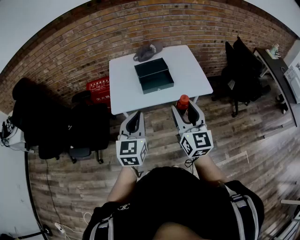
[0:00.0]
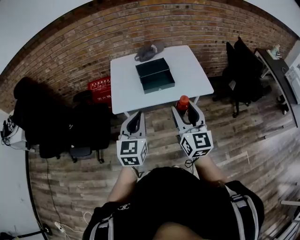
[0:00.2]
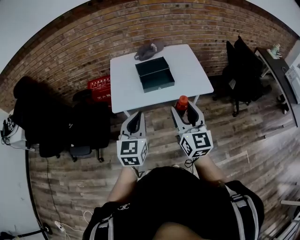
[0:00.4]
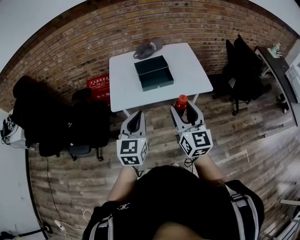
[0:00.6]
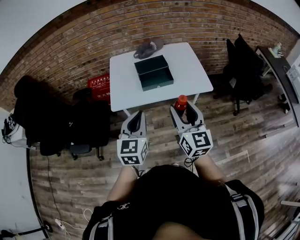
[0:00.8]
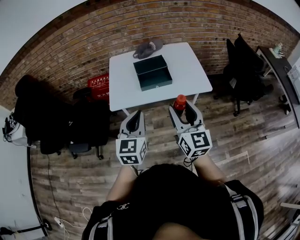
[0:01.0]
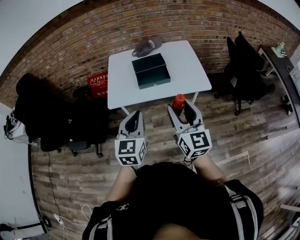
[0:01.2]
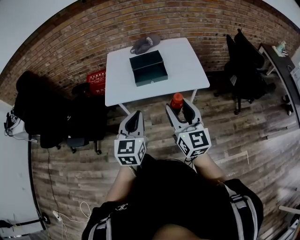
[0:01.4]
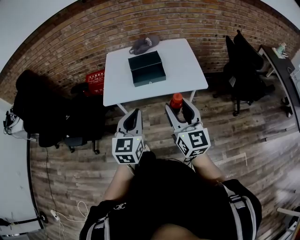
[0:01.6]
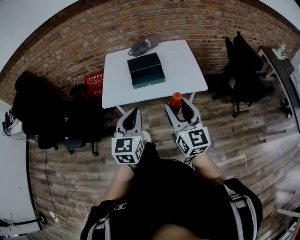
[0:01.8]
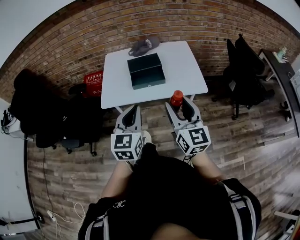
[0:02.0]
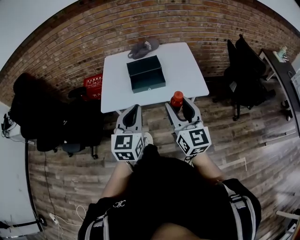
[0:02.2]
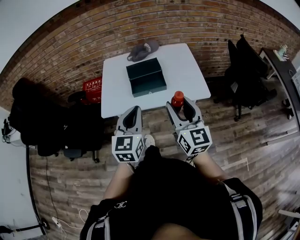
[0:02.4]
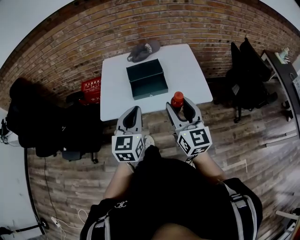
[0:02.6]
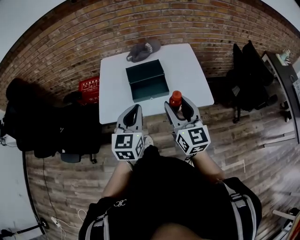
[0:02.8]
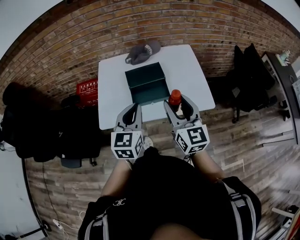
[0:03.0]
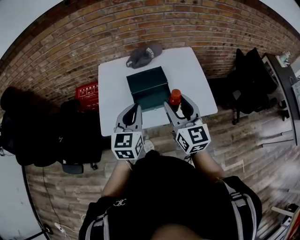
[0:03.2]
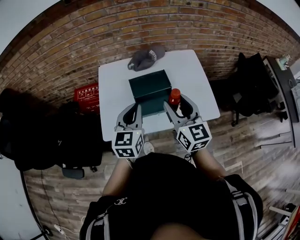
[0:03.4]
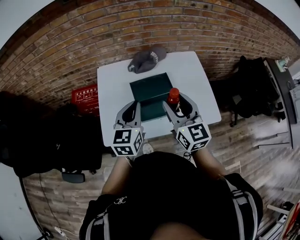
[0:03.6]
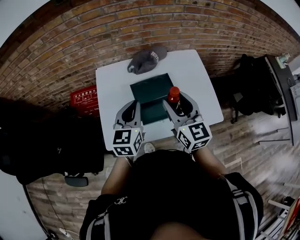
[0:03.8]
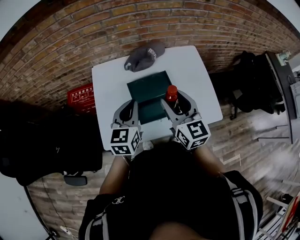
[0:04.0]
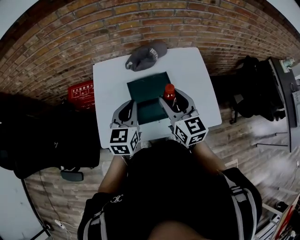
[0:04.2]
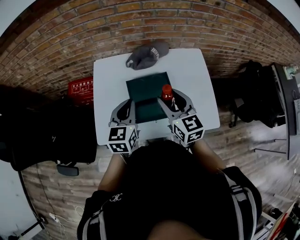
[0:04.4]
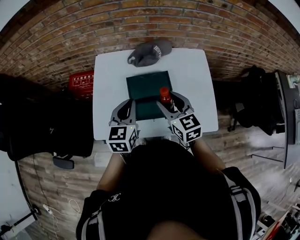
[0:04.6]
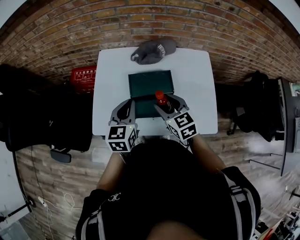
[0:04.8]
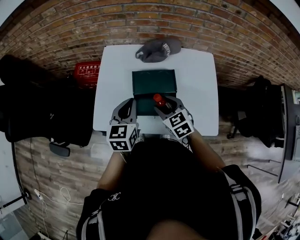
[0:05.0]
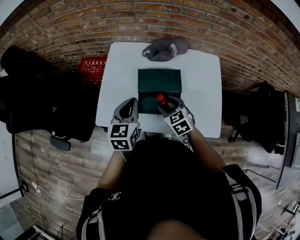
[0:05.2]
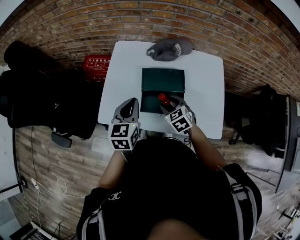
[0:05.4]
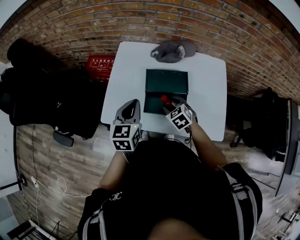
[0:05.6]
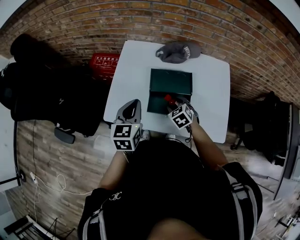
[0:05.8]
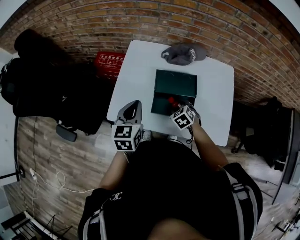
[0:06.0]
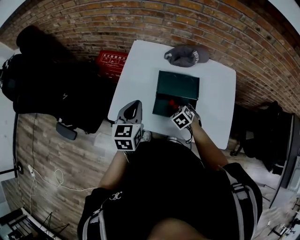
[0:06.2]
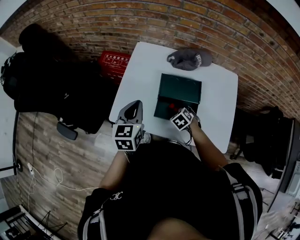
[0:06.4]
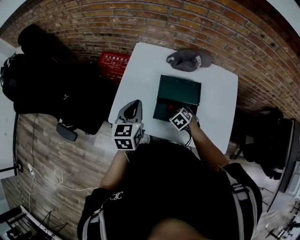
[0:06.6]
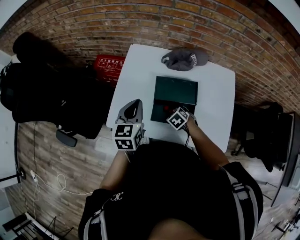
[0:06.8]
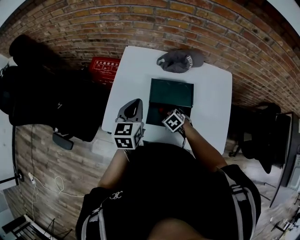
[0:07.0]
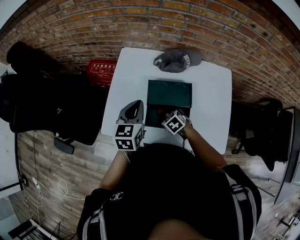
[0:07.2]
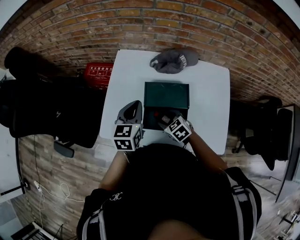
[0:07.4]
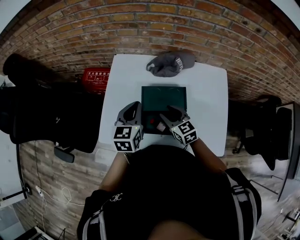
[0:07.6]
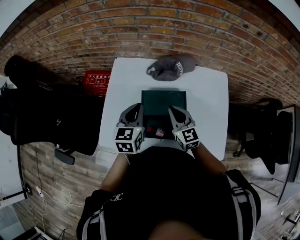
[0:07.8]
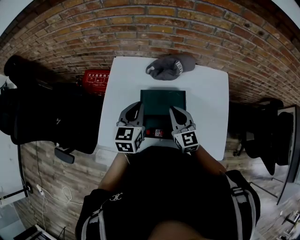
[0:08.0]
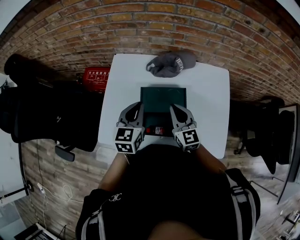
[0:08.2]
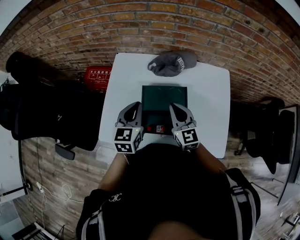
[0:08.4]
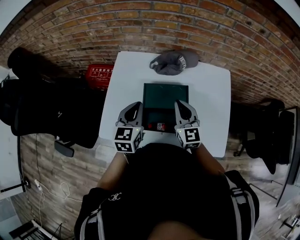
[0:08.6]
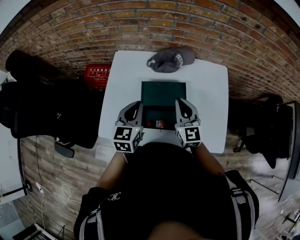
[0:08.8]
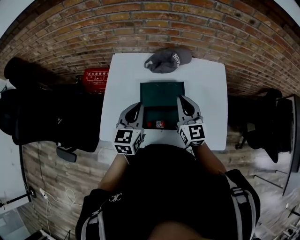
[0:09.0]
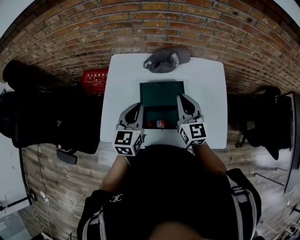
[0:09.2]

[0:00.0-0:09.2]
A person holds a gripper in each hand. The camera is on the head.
0.0 to 1.6 s: Both grippers travel together to the right, roughly 10 cm.
1.6 to 3.0 s: Both grippers travel together forward, roughly 20 cm.
3.0 to 4.6 s: The left gripper moves forward, roughly 20 cm, while the right gripper shifts some 20 cm forward and downward, and changes its angle by approximately 30 degrees.
4.6 to 6.2 s: The left gripper moves to the left, some 10 cm, while the right gripper is displaced downward by about 25 cm, and tilts its fingers about 40 degrees downward.
6.2 to 7.6 s: The right gripper travels upward and forward by approximately 10 cm, and tips its fingers upward by approximately 40 degrees, while the left gripper goes about 15 cm to the right and forward.
7.6 to 9.2 s: The right gripper shifts roughly 15 cm upward and to the right, turns by roughly 30 degrees, and closes its fingers.

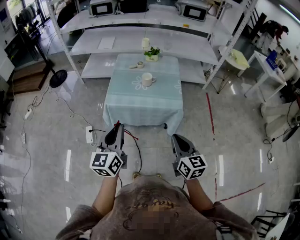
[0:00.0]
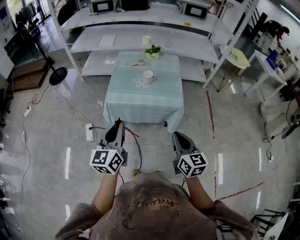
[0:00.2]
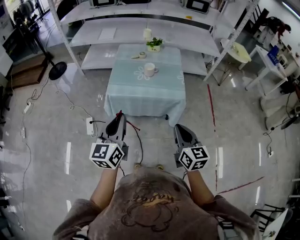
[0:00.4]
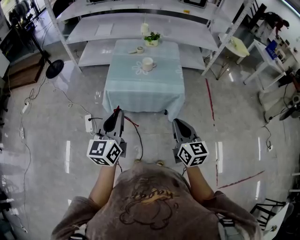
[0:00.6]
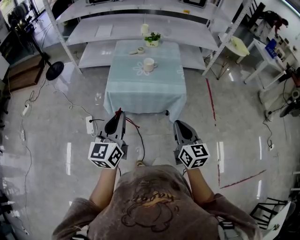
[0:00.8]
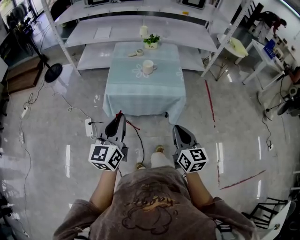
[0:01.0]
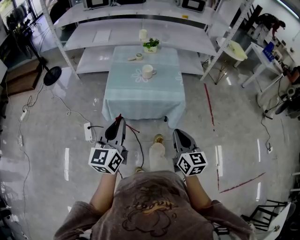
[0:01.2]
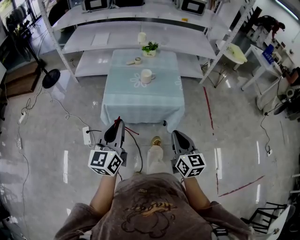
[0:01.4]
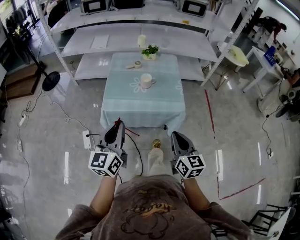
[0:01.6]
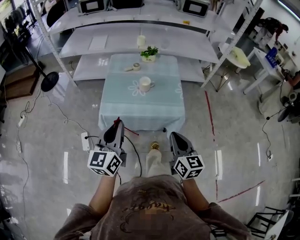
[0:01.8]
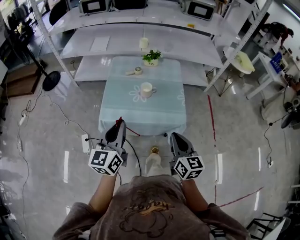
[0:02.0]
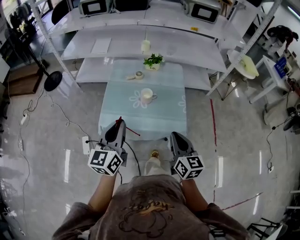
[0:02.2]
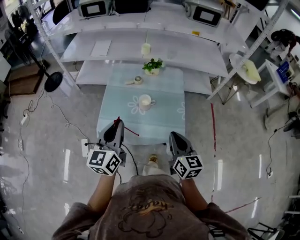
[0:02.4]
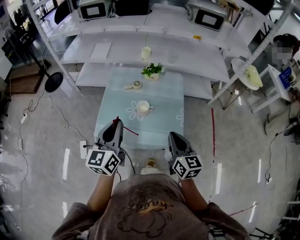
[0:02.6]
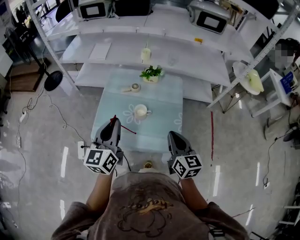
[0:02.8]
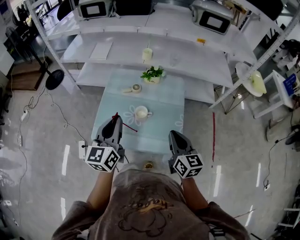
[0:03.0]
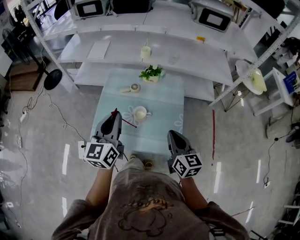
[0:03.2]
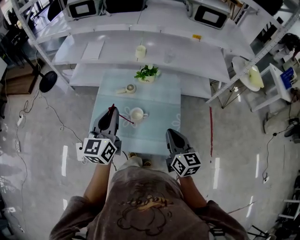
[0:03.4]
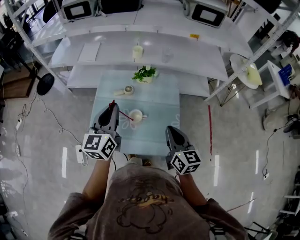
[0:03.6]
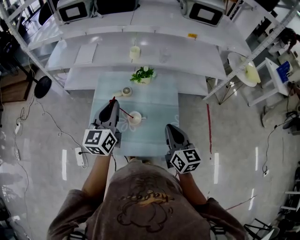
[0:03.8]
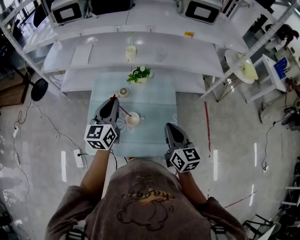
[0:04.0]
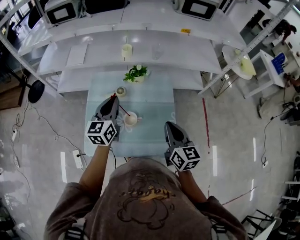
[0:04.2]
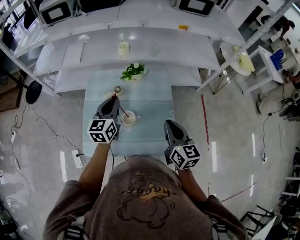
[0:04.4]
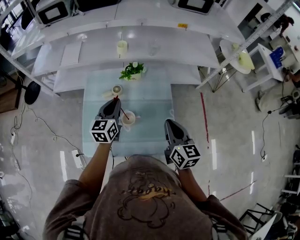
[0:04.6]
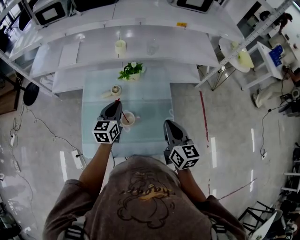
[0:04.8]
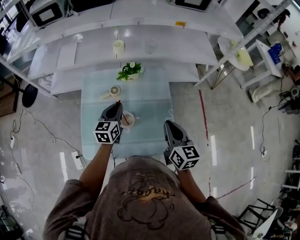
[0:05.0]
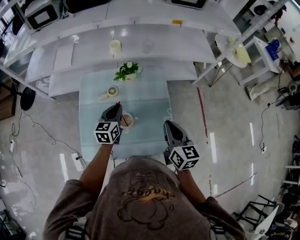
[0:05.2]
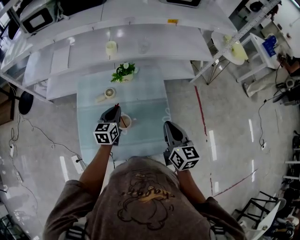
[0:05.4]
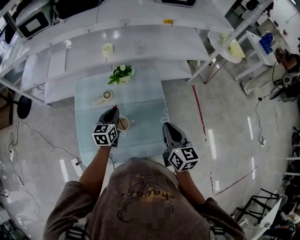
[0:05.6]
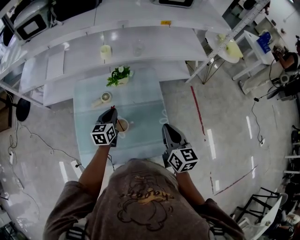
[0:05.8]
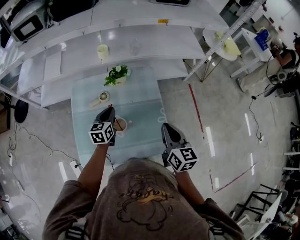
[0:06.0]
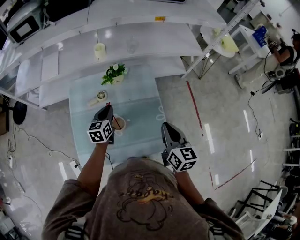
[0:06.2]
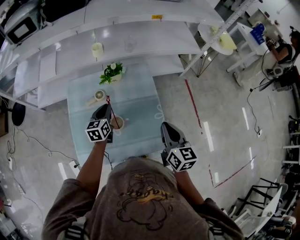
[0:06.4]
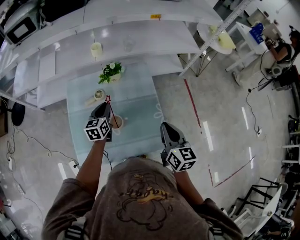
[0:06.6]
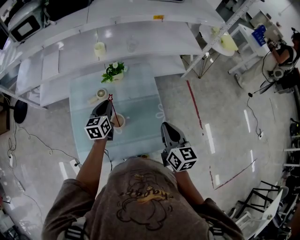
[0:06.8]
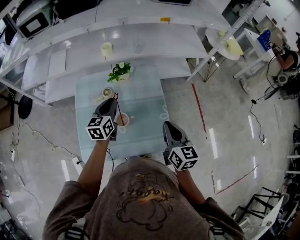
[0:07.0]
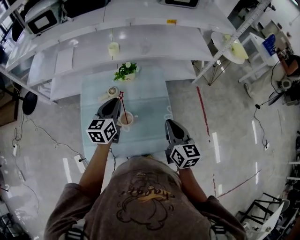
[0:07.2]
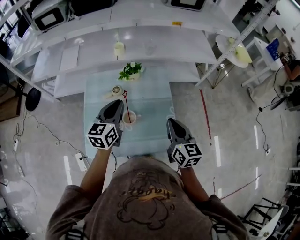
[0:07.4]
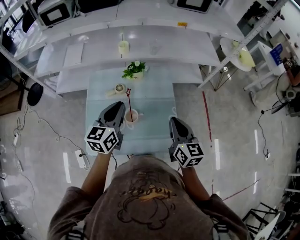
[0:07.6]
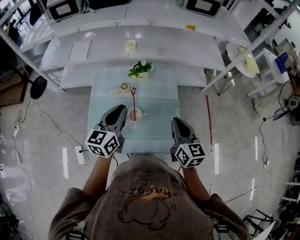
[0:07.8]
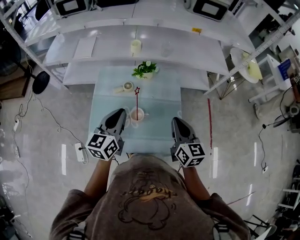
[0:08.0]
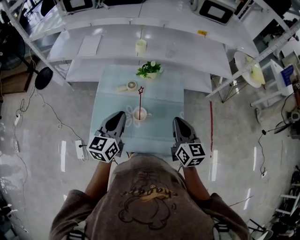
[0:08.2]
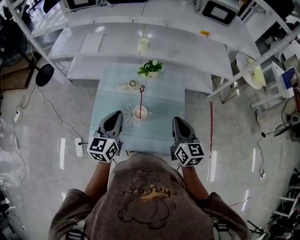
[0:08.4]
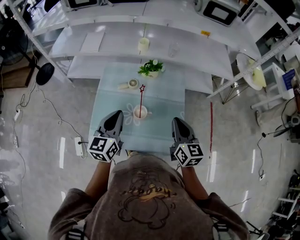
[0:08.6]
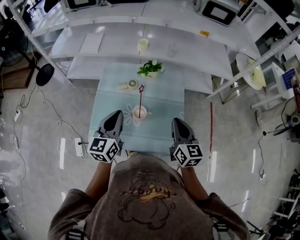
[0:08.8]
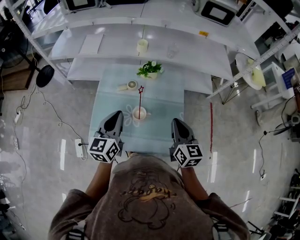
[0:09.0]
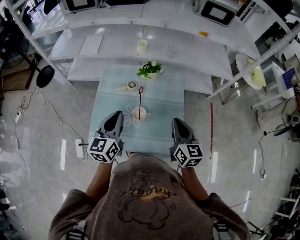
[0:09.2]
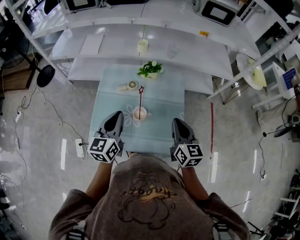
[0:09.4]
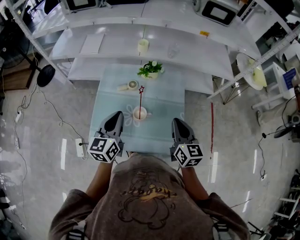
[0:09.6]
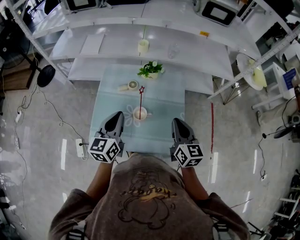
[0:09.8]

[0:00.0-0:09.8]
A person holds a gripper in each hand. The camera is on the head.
0.0 to 1.4 s: The right gripper moves some 5 cm. Meanwhile the left gripper ends up approximately 5 cm from where it was.
1.4 to 2.8 s: Both grippers travel together forward, roughly 35 cm.
2.8 to 4.2 s: The right gripper goes approximately 10 cm forward, while the left gripper moves forward, some 20 cm.
4.2 to 5.6 s: The left gripper shifts about 15 cm downward, and turns by some 20 degrees.
5.6 to 7.0 s: The left gripper goes about 5 cm upward.
7.0 to 8.4 s: The right gripper goes about 5 cm to the left; the left gripper is displaced backward, upward and to the left by approximately 15 cm.
8.4 to 9.8 s: The two grippers keep their place.

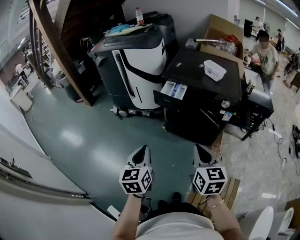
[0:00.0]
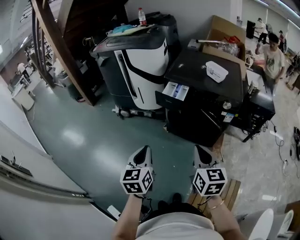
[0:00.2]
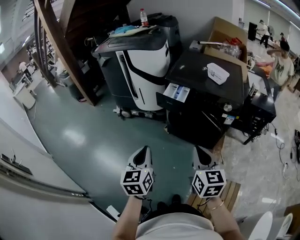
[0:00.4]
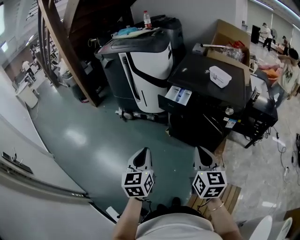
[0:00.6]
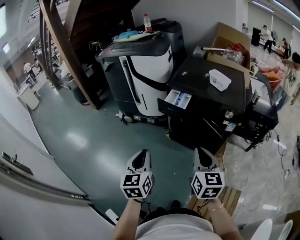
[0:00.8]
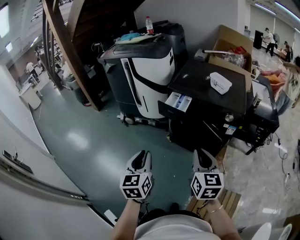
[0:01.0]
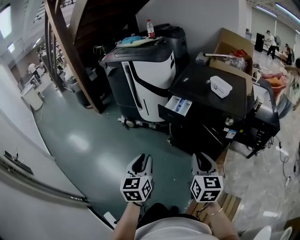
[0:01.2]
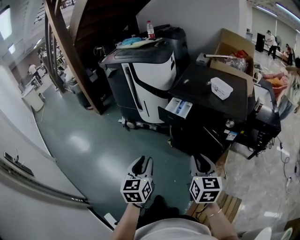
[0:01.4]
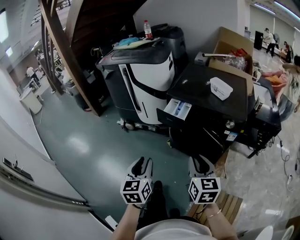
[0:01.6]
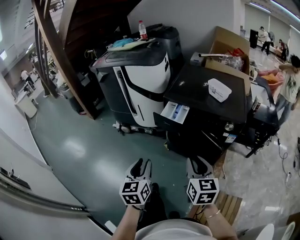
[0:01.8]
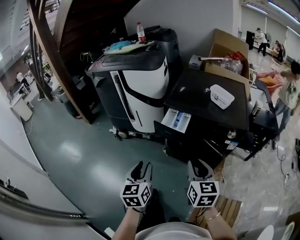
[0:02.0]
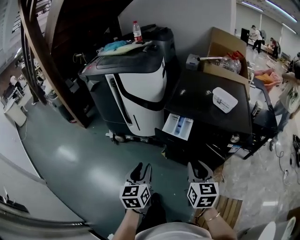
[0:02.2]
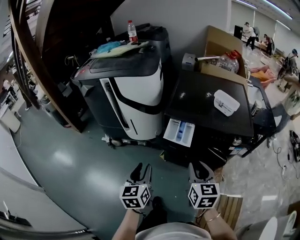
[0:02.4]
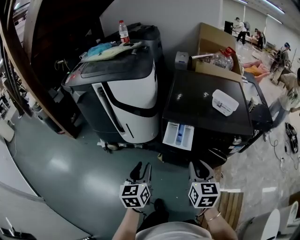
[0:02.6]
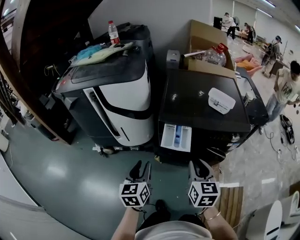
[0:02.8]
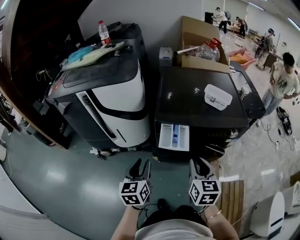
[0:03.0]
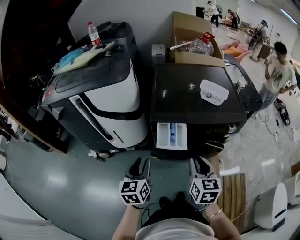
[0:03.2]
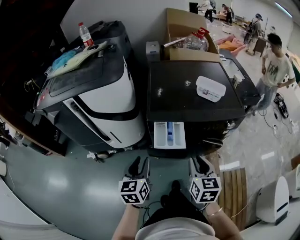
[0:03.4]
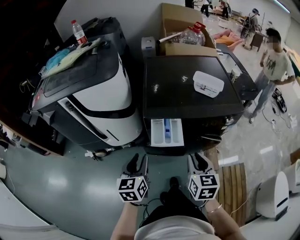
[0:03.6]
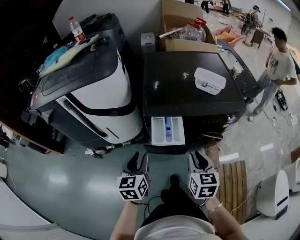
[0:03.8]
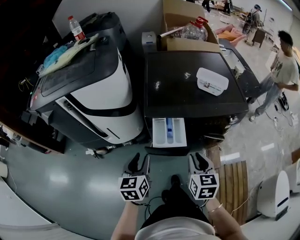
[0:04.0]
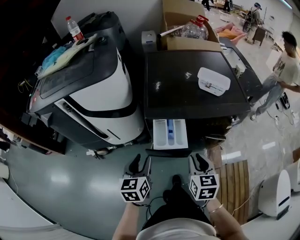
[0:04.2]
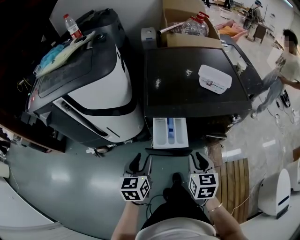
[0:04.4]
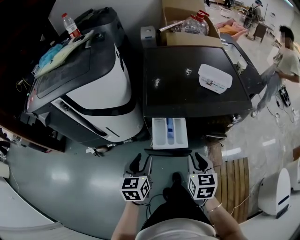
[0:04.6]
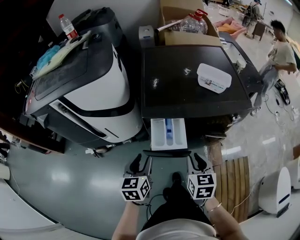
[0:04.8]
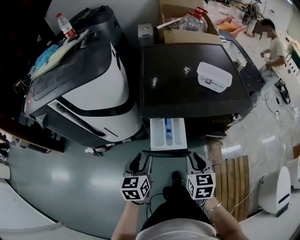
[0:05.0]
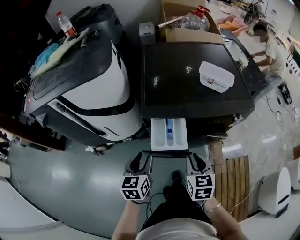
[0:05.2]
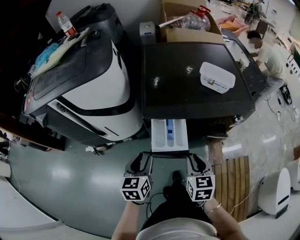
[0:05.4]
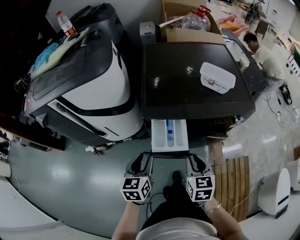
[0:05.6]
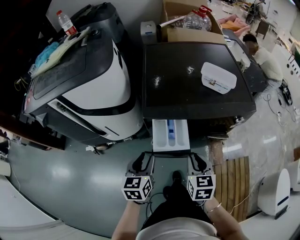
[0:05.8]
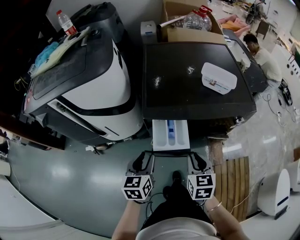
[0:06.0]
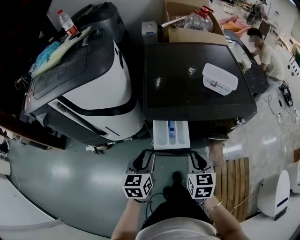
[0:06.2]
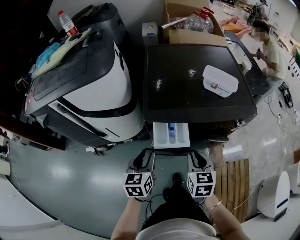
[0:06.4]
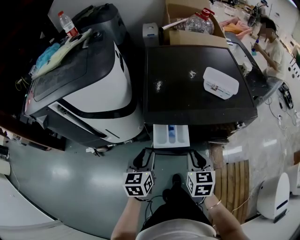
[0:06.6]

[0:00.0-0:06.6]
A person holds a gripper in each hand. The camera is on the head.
0.0 to 1.6 s: The left gripper opens, while the right gripper shifts roughly 5 cm forward.
1.6 to 3.2 s: The right gripper moves some 25 cm, and swivels approximately 30 degrees, while the left gripper shifts by some 30 cm, and rotates about 30 degrees.
3.2 to 5.0 s: The left gripper is displaced downward and forward by roughly 10 cm; the right gripper is displaced downward by roughly 10 cm.
5.0 to 6.6 s: The grippers stay close to where they were, moving slightly.
